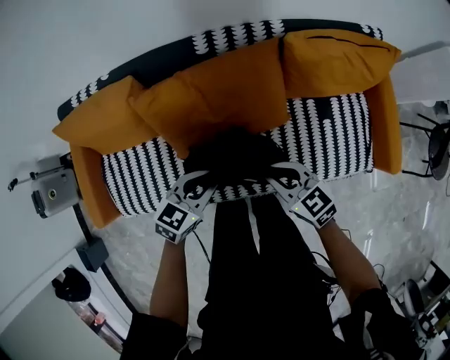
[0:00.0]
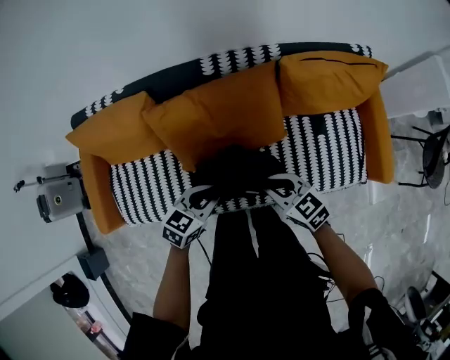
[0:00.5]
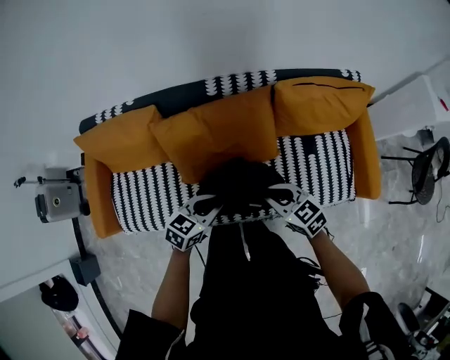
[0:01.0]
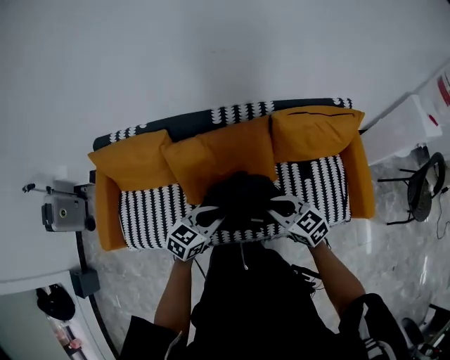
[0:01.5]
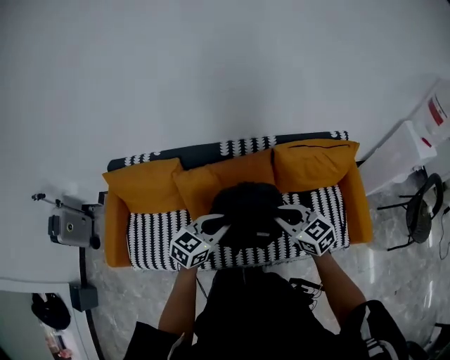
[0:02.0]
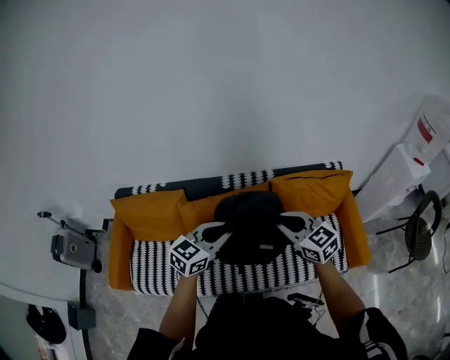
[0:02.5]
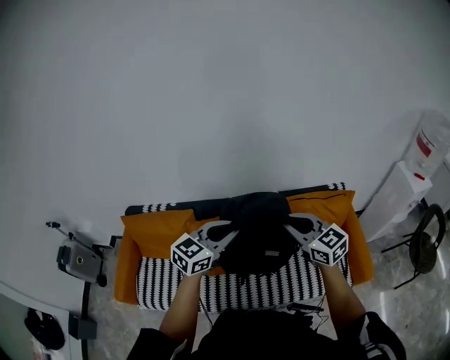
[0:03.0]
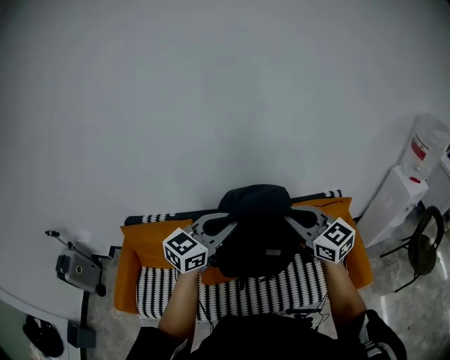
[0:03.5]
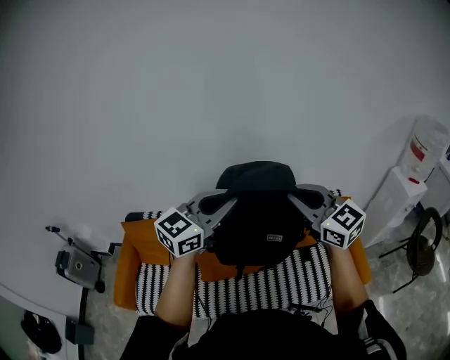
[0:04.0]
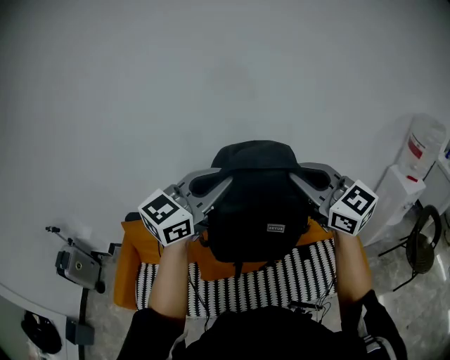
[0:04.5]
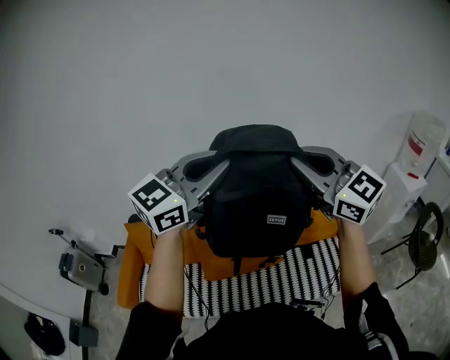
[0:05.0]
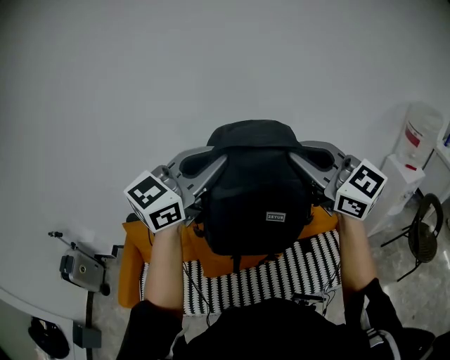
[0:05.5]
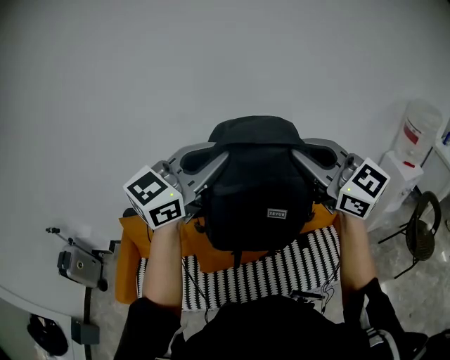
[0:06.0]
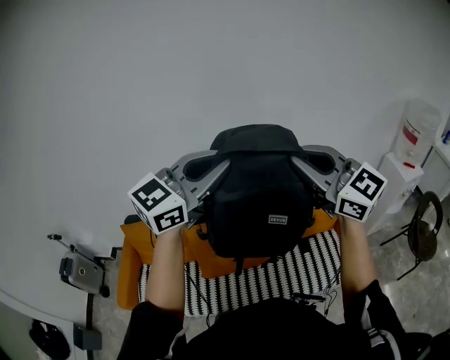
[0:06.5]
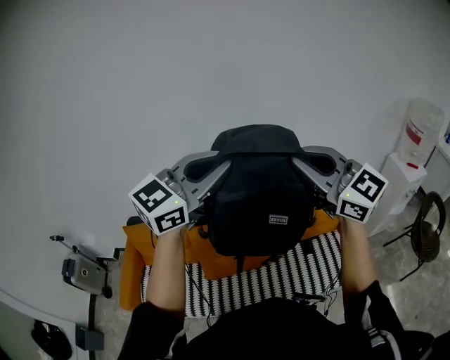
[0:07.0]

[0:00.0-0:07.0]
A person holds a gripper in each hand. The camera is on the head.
0:00.0 to 0:02.0: Both grippers travel together upward, some 20 cm.
0:02.0 to 0:03.5: Both grippers move upward, some 25 cm. The left gripper swivels some 20 degrees, while the right gripper turns by roughly 20 degrees.
0:03.5 to 0:05.0: Both grippers travel together upward, approximately 20 cm.
0:05.0 to 0:07.0: The grippers stay close to where they were, moving slightly.

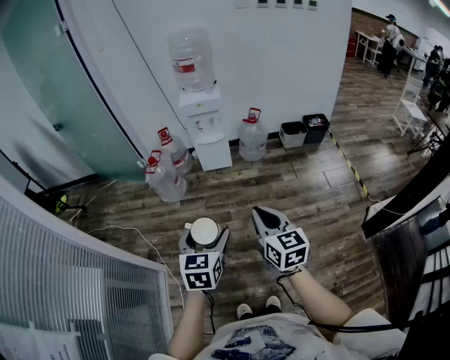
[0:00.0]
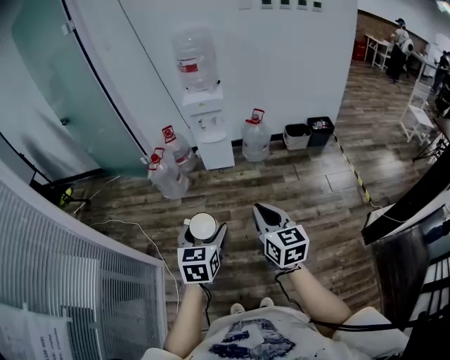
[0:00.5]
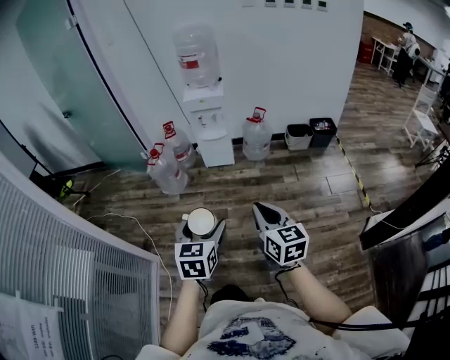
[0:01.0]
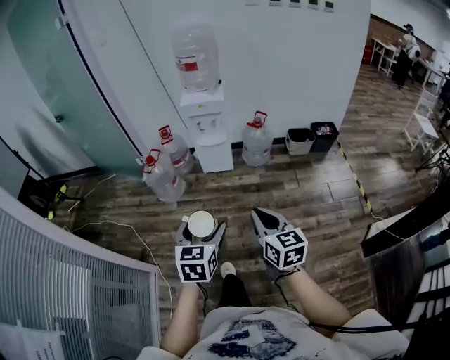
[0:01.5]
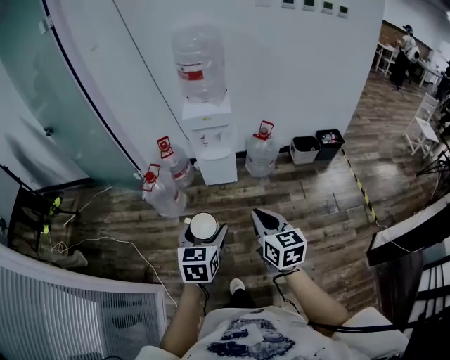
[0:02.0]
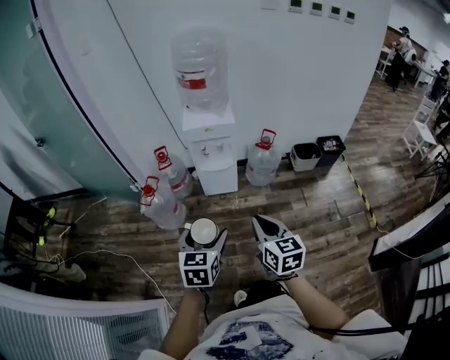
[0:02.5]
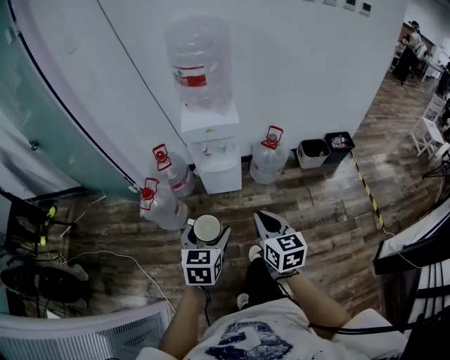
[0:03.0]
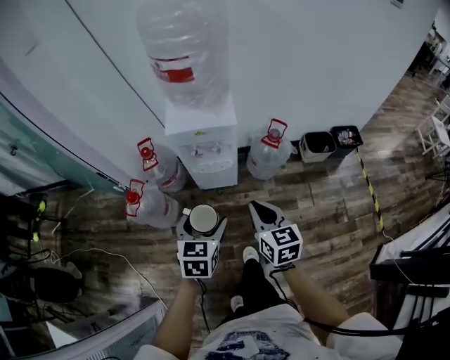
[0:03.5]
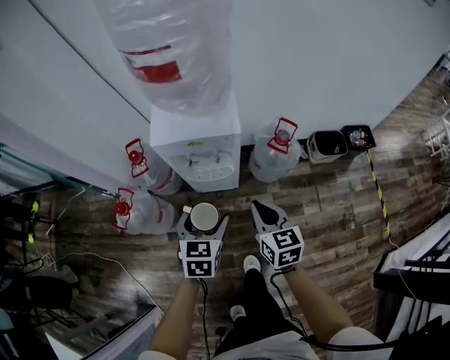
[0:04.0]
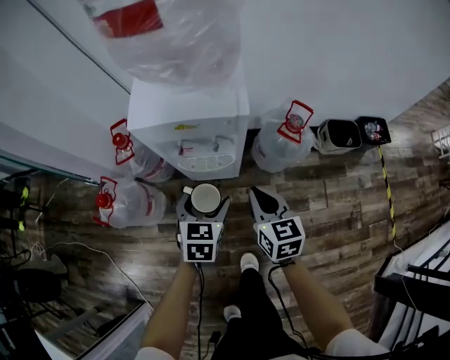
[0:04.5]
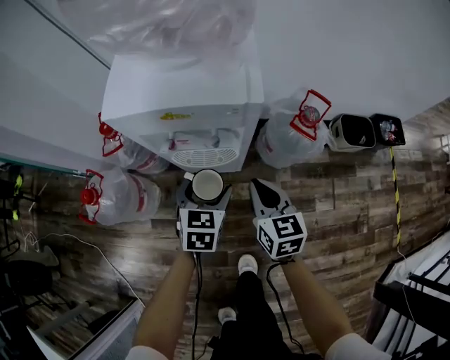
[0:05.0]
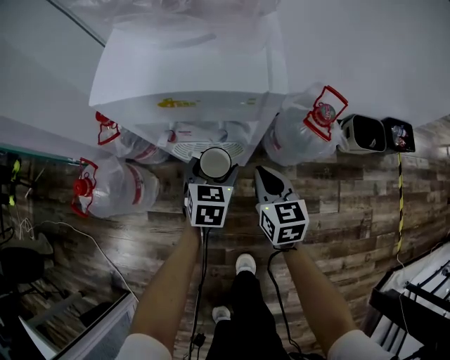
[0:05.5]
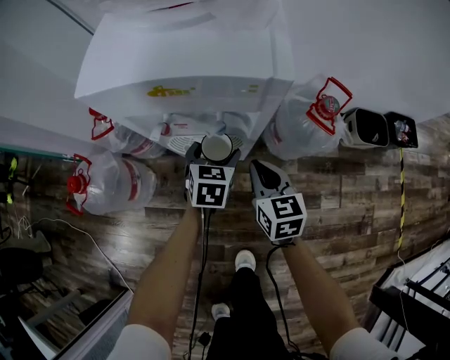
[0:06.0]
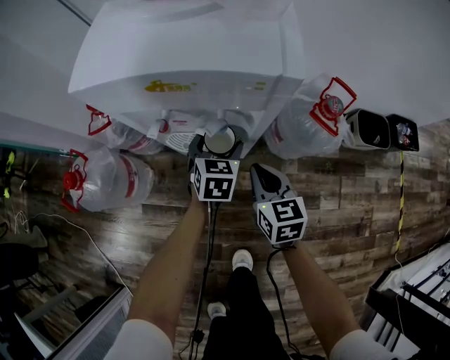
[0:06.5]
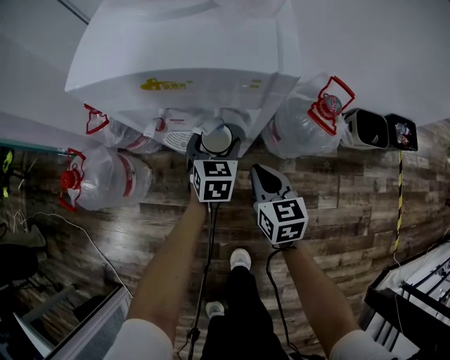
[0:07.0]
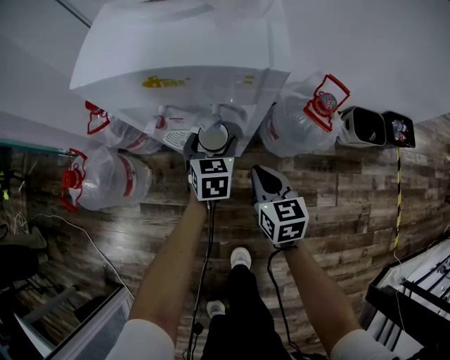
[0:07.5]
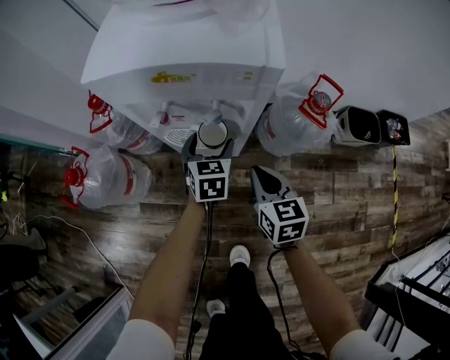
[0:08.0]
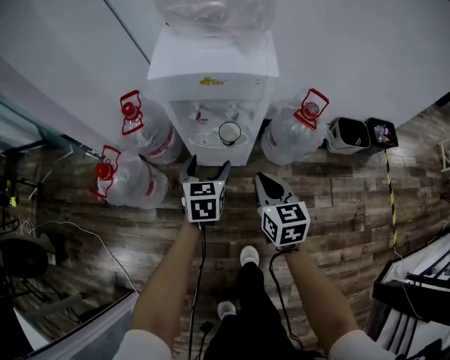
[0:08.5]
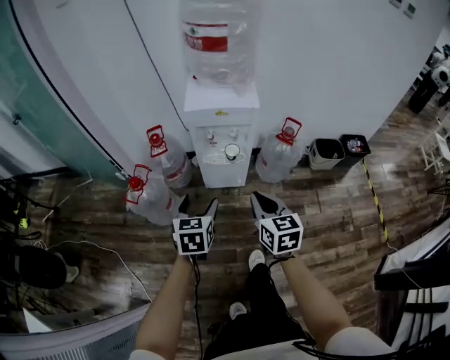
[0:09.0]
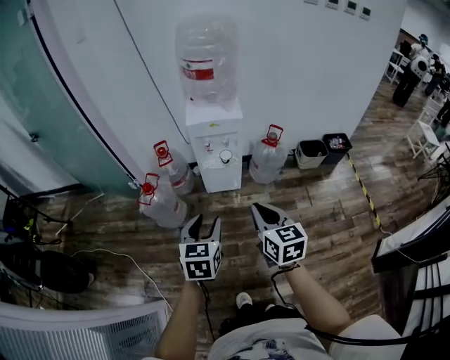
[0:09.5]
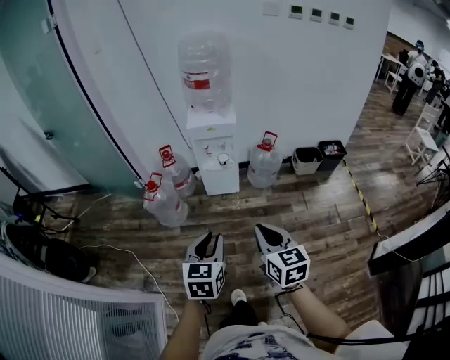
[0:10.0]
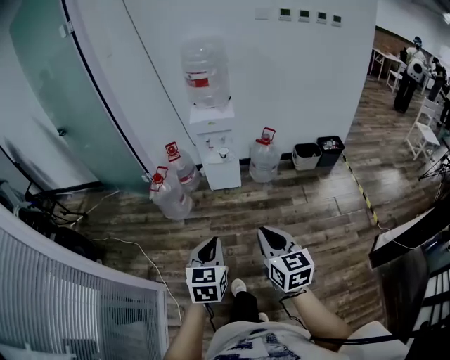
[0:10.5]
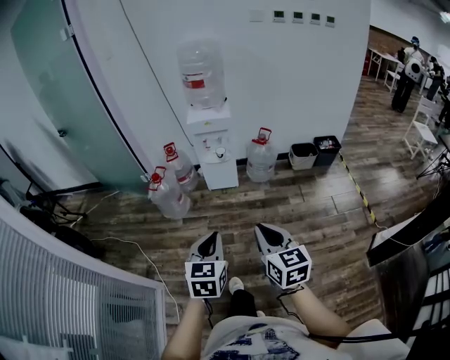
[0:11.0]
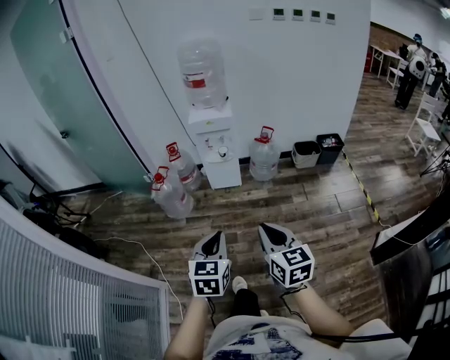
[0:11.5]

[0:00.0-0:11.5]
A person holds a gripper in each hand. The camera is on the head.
0:00.0 to 0:02.0: The grippers both shift forward by some 25 cm.
0:02.0 to 0:04.0: The two grippers travel together, forward, roughly 50 cm. Both grippers travel together downward, about 20 cm.
0:04.0 to 0:06.0: Both grippers travel together downward and forward, roughly 35 cm.
0:06.0 to 0:07.5: There are only small adjustments of the grippers.
0:07.5 to 0:09.5: The pair of grippers is taken backward, some 50 cm. The two grippers go roughly 50 cm upward. The left gripper closes.
0:09.5 to 0:11.5: The grippers both shift backward by roughly 35 cm. The left gripper closes.

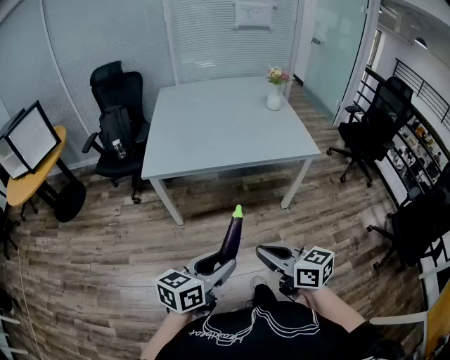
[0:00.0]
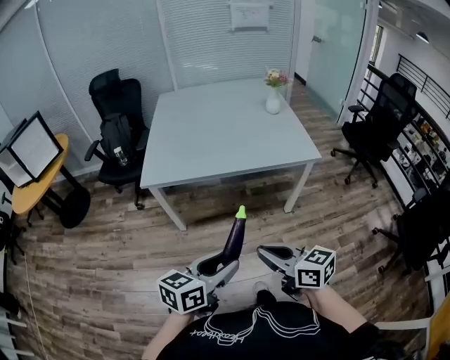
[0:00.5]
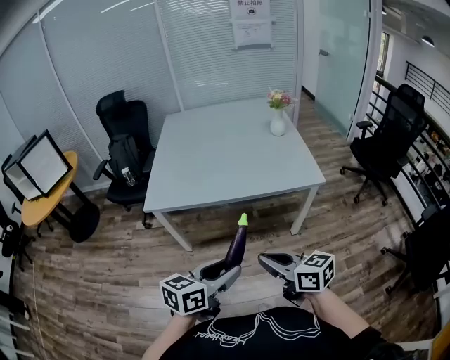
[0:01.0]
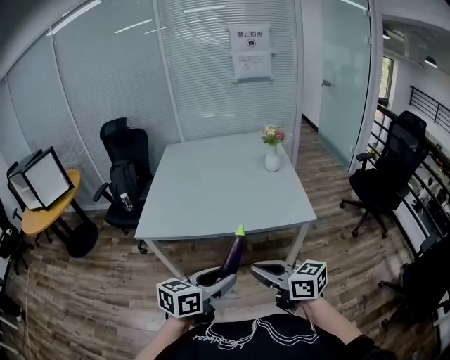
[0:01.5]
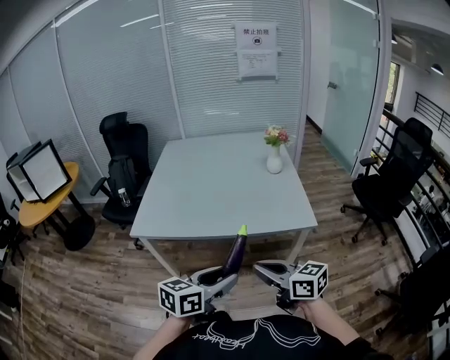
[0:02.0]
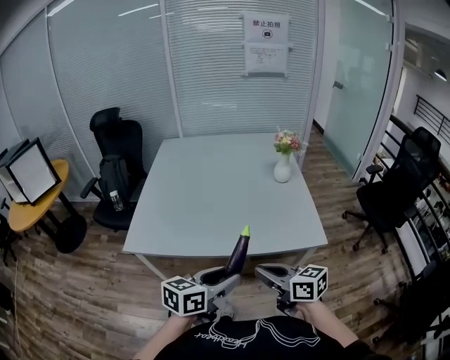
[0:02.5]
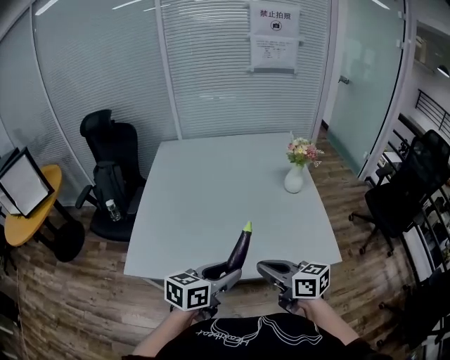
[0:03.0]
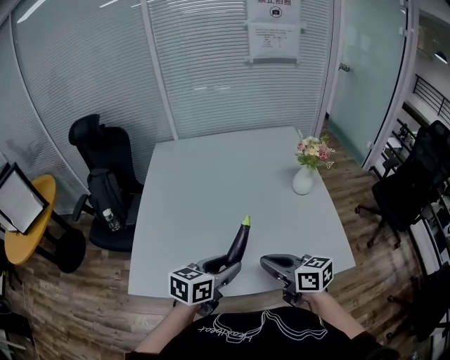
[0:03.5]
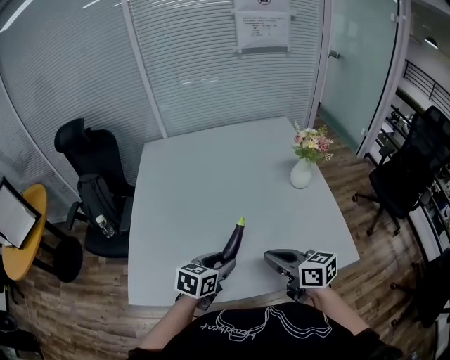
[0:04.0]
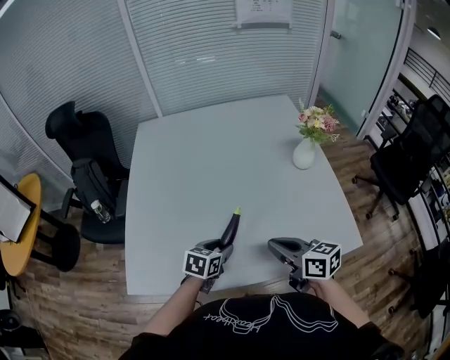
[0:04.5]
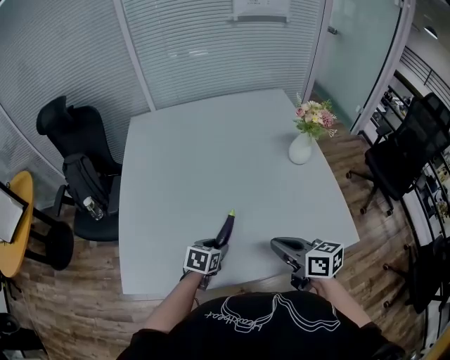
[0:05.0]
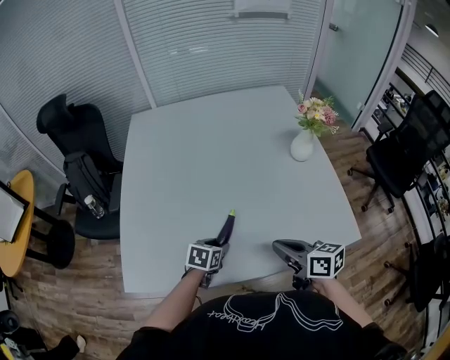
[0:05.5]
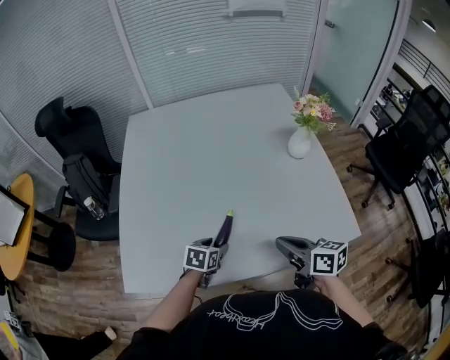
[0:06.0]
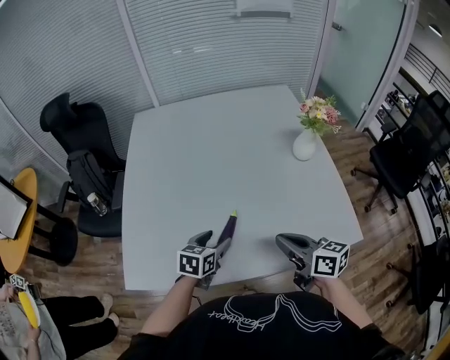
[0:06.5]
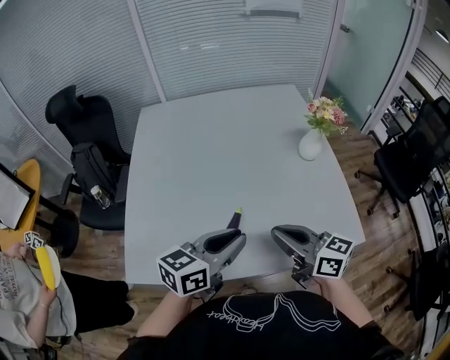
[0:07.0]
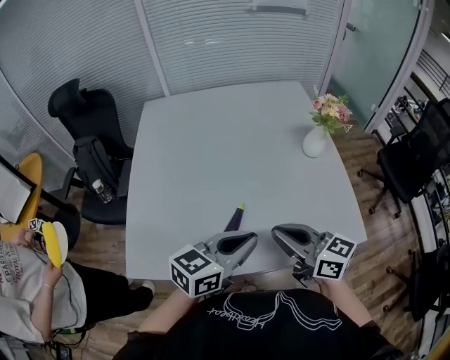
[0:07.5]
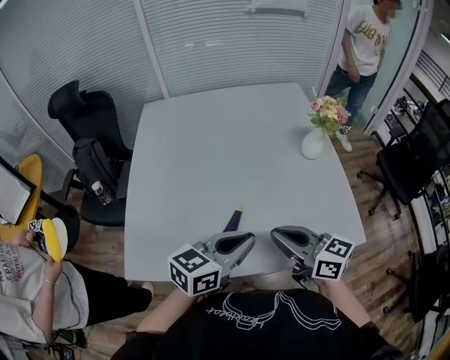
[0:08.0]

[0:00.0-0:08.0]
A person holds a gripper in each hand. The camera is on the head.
0:00.0 to 0:02.0: The left gripper goes roughly 30 cm to the right and forward, while the right gripper moves forward and to the right, about 30 cm.
0:02.0 to 0:04.0: The two grippers travel together, forward, some 40 cm.
0:04.0 to 0:06.0: The right gripper goes roughly 5 cm downward, while the left gripper goes approximately 15 cm downward.
0:06.0 to 0:08.0: The left gripper travels upward by approximately 25 cm, tilts its fingers about 40 degrees upward, and closes up. Meanwhile the right gripper moves upward, approximately 10 cm, and changes its angle by about 20 degrees.
